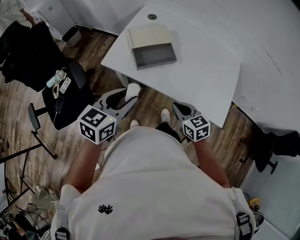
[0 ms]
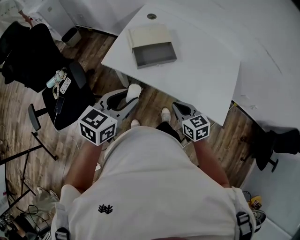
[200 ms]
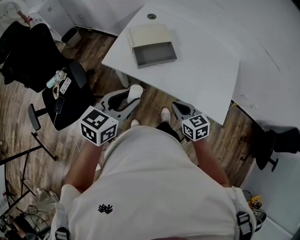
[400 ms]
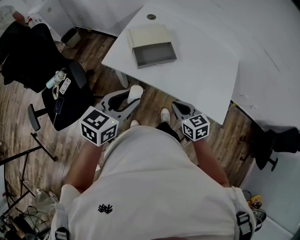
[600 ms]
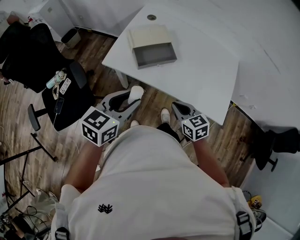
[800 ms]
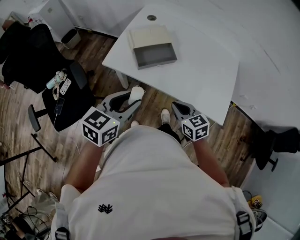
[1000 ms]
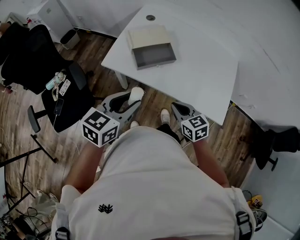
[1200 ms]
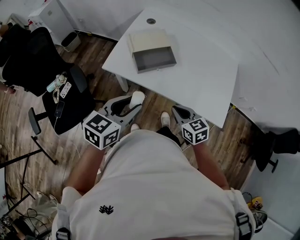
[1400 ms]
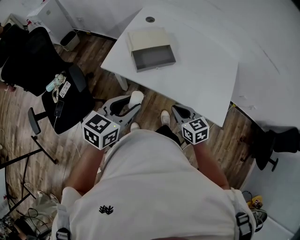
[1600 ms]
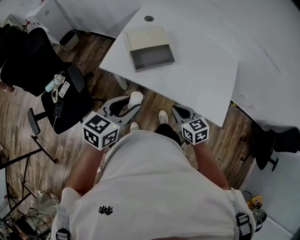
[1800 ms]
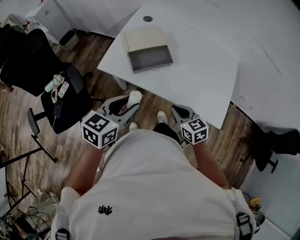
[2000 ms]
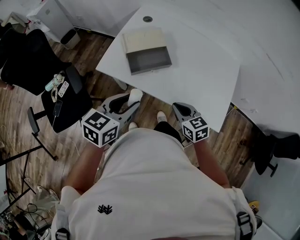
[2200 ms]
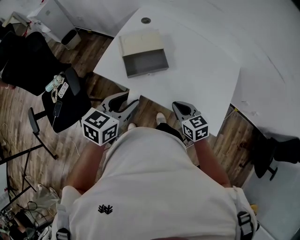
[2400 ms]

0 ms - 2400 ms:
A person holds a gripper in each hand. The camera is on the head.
0 ms - 1200 ms: The grippers make only small movements.
1200 ms - 2400 ms: The two grippers go about 10 cm forward and to the right.

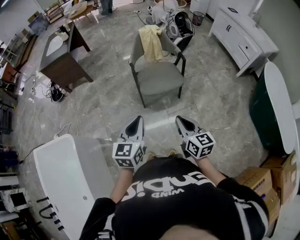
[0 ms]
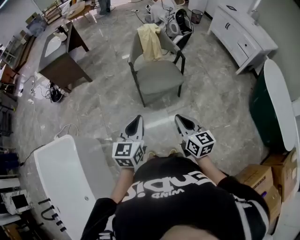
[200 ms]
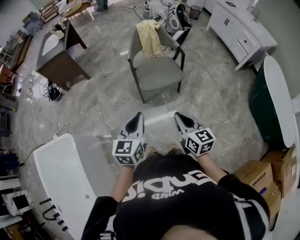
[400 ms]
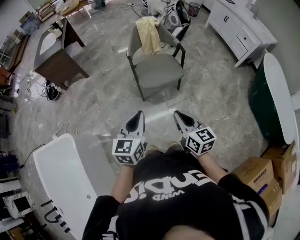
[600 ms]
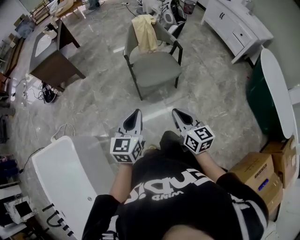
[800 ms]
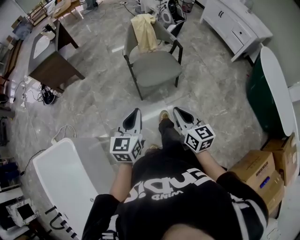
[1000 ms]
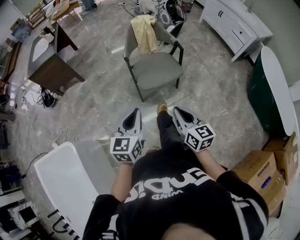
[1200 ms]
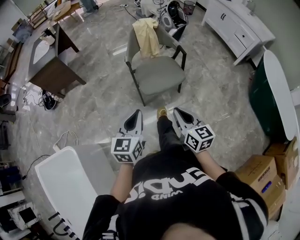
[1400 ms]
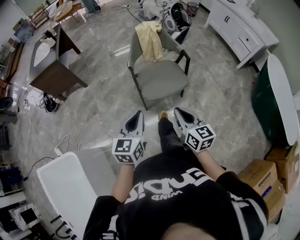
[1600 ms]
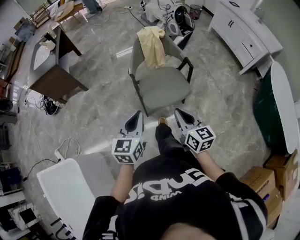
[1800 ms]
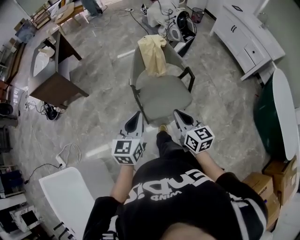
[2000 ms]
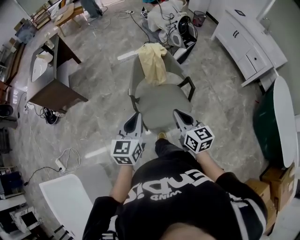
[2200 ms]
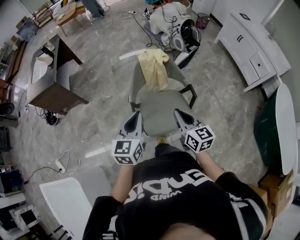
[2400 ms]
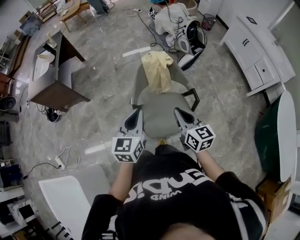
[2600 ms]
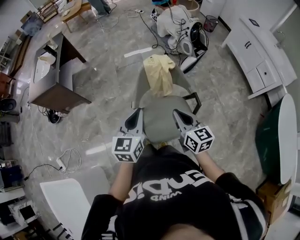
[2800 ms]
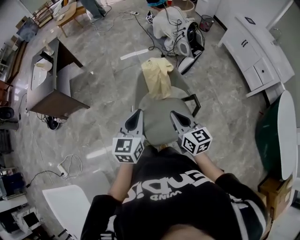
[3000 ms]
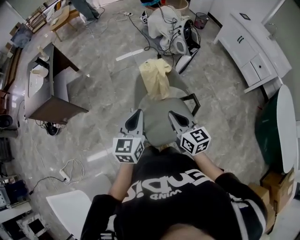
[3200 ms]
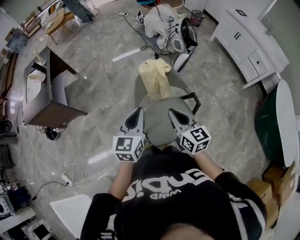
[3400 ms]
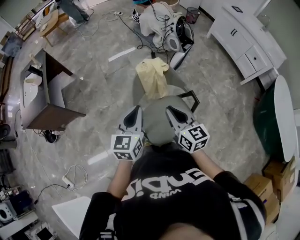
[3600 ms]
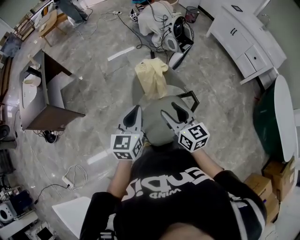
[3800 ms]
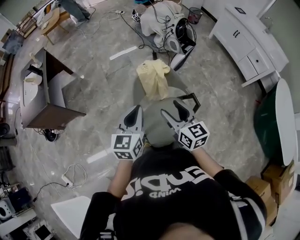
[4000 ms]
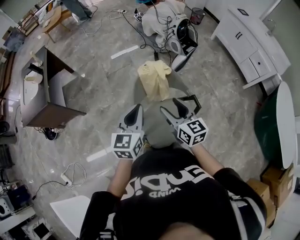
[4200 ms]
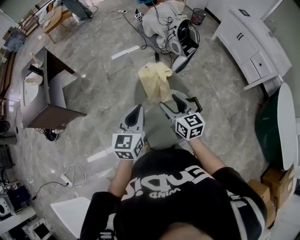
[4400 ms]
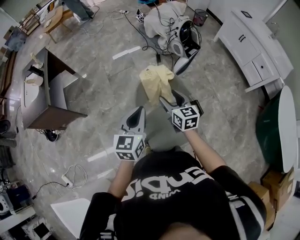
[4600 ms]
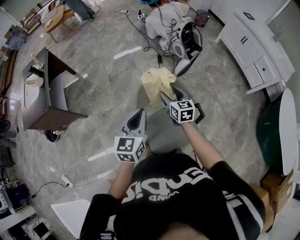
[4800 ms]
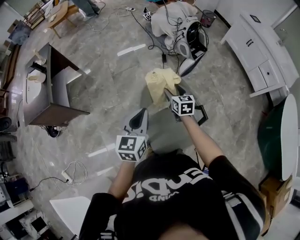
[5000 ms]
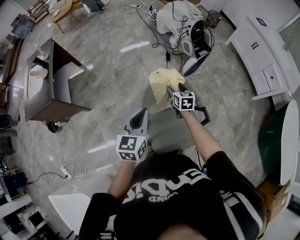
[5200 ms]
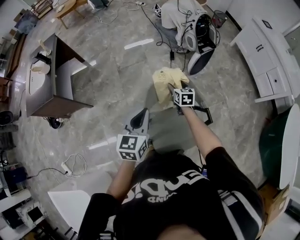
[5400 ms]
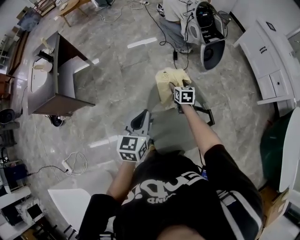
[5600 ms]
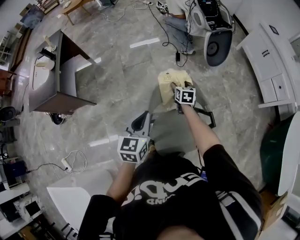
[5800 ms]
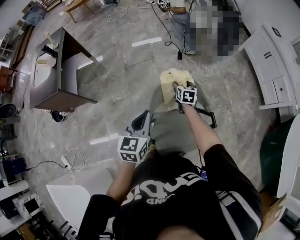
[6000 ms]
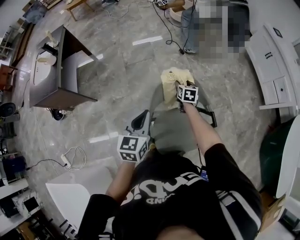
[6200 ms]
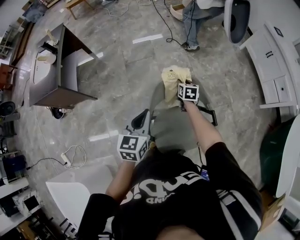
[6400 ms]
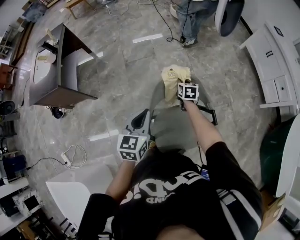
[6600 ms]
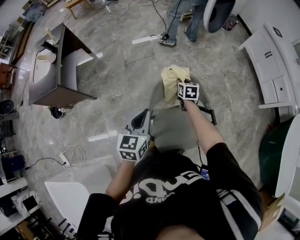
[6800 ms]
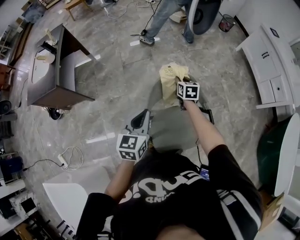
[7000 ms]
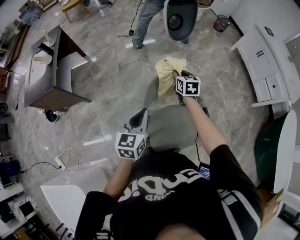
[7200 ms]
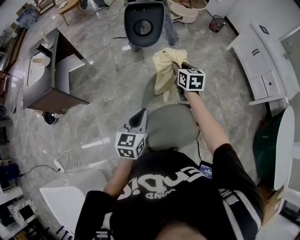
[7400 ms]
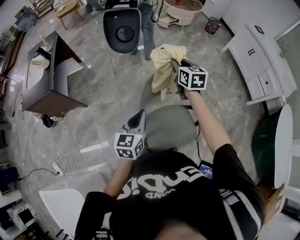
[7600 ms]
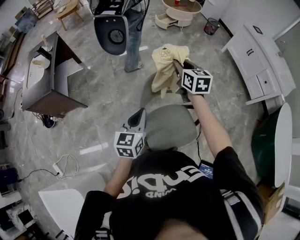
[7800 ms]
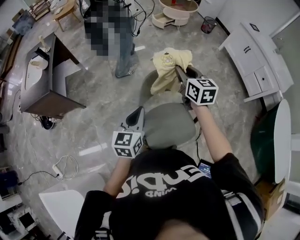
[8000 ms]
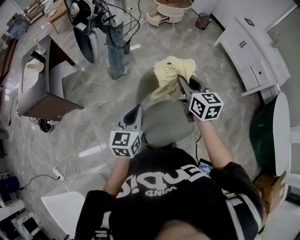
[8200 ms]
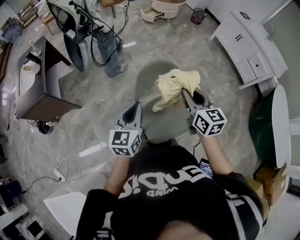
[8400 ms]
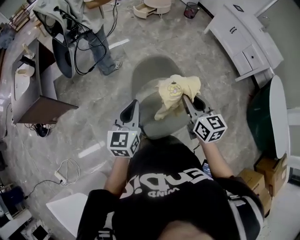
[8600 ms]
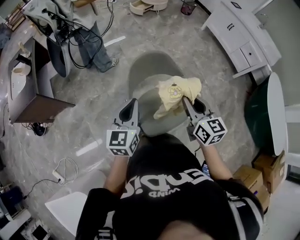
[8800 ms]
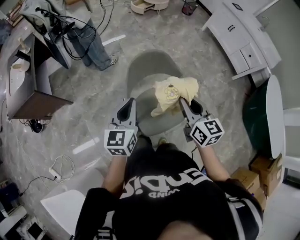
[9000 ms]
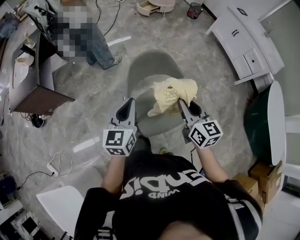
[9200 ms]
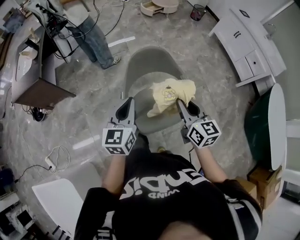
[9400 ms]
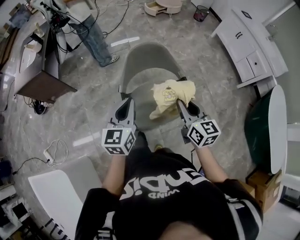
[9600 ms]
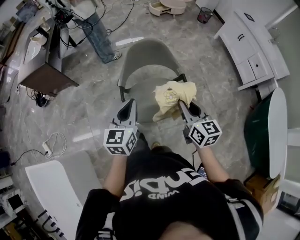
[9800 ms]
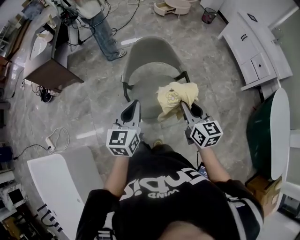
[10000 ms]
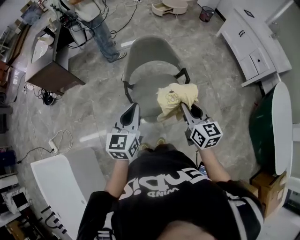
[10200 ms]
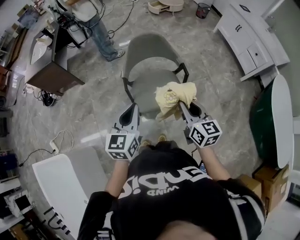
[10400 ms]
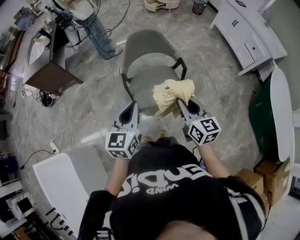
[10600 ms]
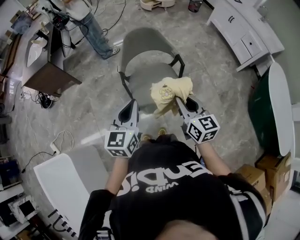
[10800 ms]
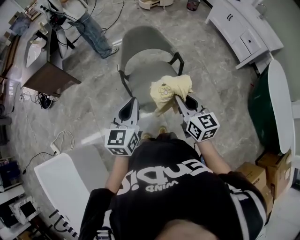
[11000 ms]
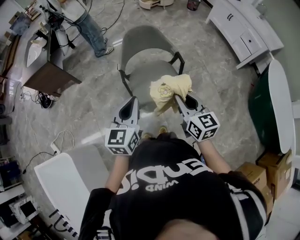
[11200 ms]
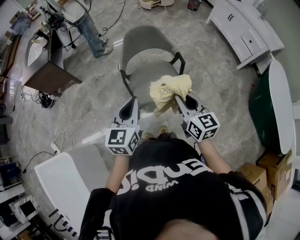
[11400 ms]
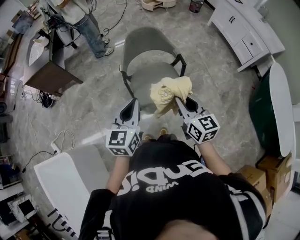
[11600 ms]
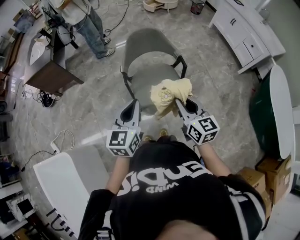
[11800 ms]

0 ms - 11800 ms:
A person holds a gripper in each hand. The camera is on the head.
0 ms - 1400 ms: The grippers both shift forward and to the left by roughly 10 cm.
1400 ms - 3000 ms: Both grippers are carried forward, approximately 40 cm.
3000 ms - 4400 ms: The two grippers go about 10 cm forward. The right gripper opens.
4400 ms - 6000 ms: The right gripper is displaced forward and downward by roughly 30 cm, and swivels about 30 degrees; the left gripper heads downward, to the left and forward, covering approximately 10 cm.
6000 ms - 7400 ms: The right gripper moves upward, about 20 cm, and closes its fingers.
7400 ms - 8800 ms: The left gripper travels backward by approximately 5 cm. Meanwhile the right gripper heads backward, covering about 30 cm.
8800 ms - 10400 ms: Both grippers travel together backward, some 25 cm.
10400 ms - 11800 ms: The right gripper shifts approximately 5 cm backward.

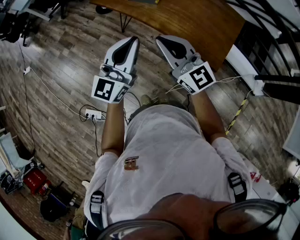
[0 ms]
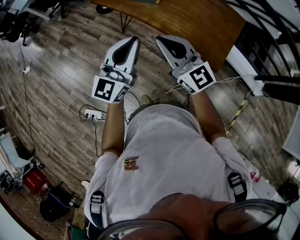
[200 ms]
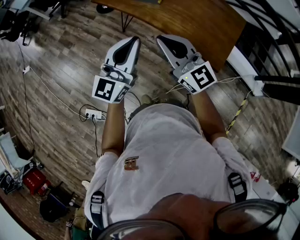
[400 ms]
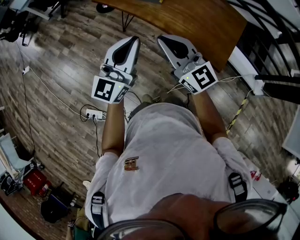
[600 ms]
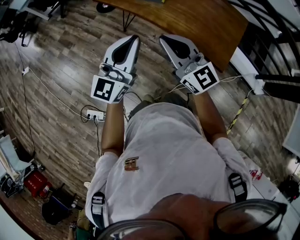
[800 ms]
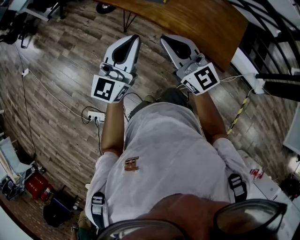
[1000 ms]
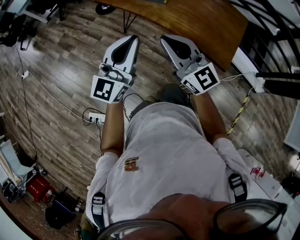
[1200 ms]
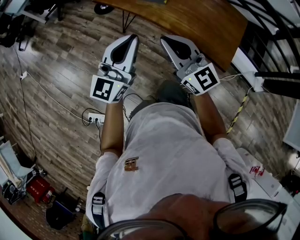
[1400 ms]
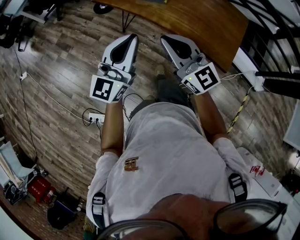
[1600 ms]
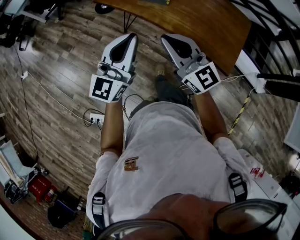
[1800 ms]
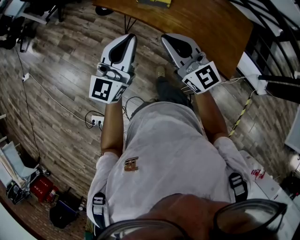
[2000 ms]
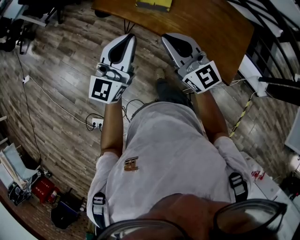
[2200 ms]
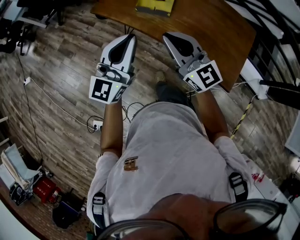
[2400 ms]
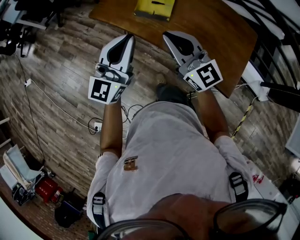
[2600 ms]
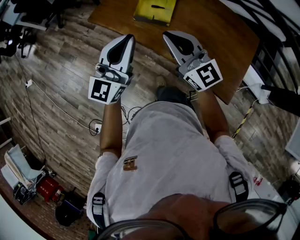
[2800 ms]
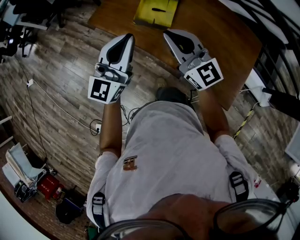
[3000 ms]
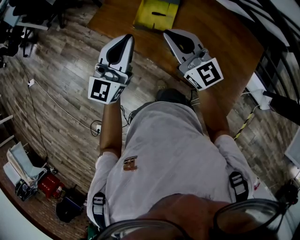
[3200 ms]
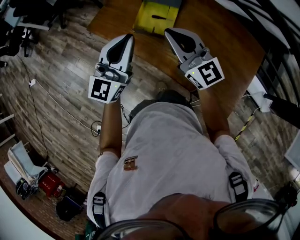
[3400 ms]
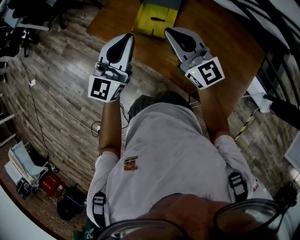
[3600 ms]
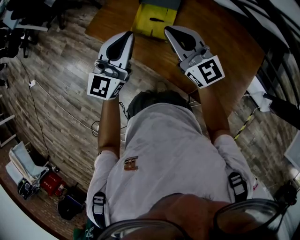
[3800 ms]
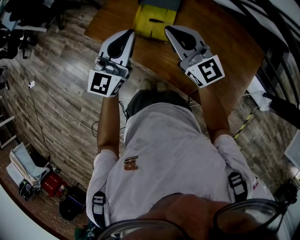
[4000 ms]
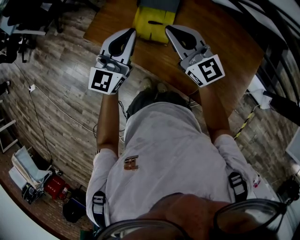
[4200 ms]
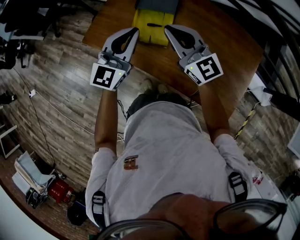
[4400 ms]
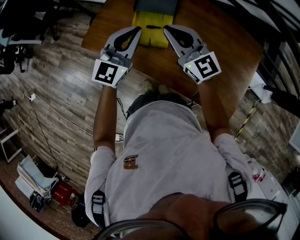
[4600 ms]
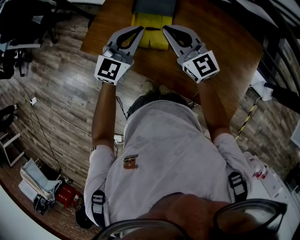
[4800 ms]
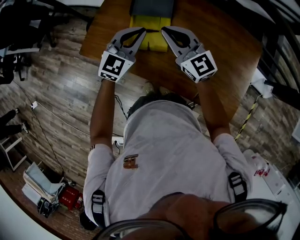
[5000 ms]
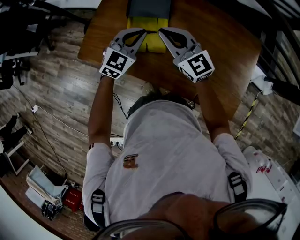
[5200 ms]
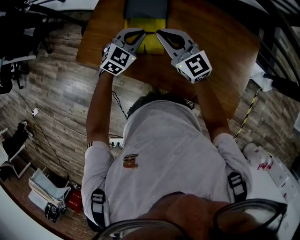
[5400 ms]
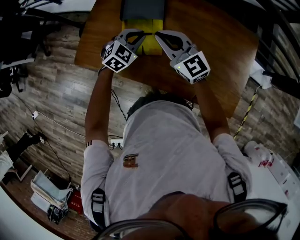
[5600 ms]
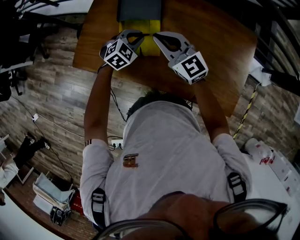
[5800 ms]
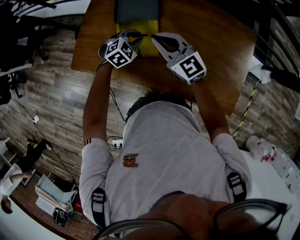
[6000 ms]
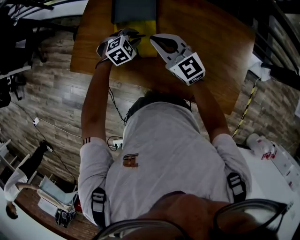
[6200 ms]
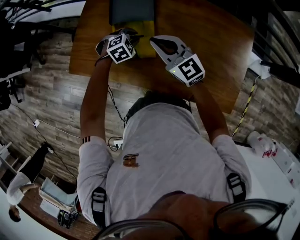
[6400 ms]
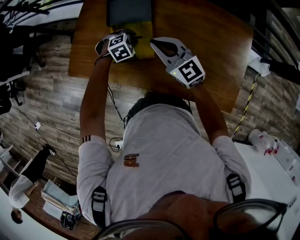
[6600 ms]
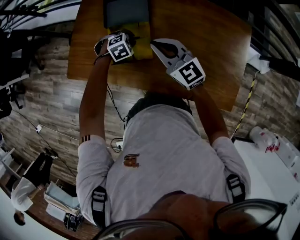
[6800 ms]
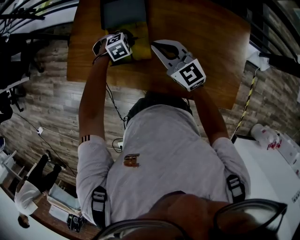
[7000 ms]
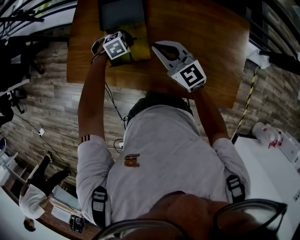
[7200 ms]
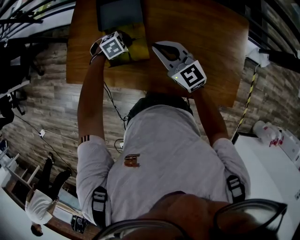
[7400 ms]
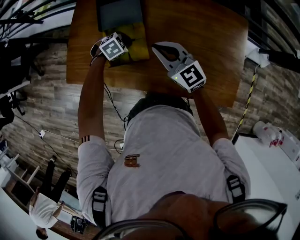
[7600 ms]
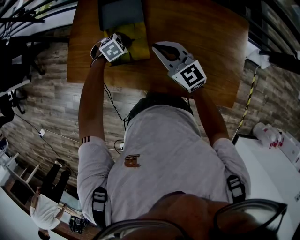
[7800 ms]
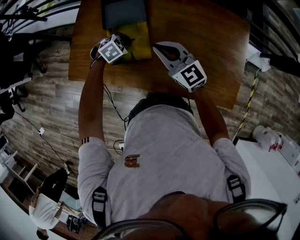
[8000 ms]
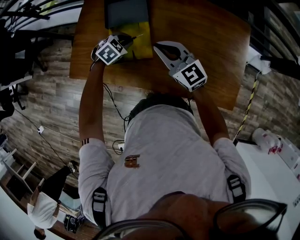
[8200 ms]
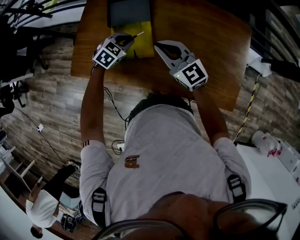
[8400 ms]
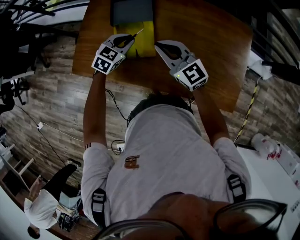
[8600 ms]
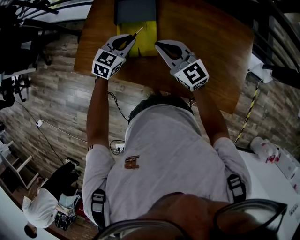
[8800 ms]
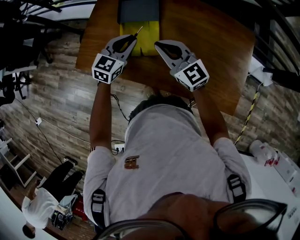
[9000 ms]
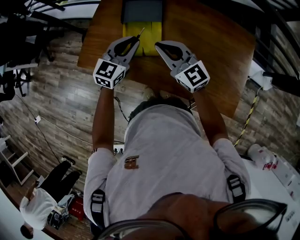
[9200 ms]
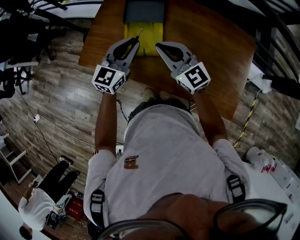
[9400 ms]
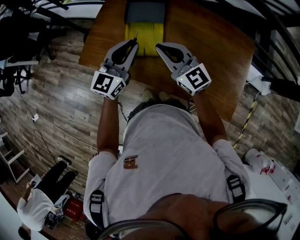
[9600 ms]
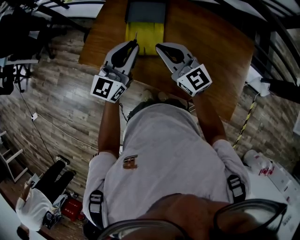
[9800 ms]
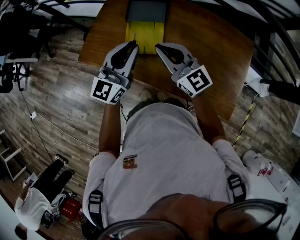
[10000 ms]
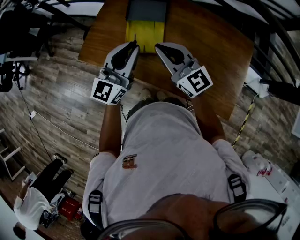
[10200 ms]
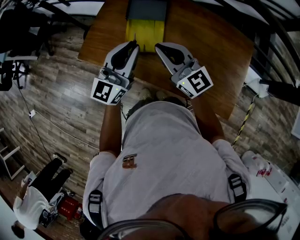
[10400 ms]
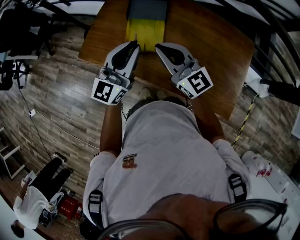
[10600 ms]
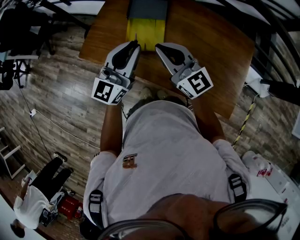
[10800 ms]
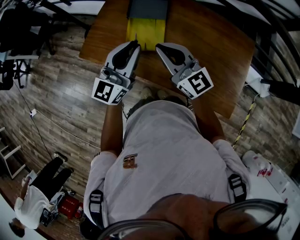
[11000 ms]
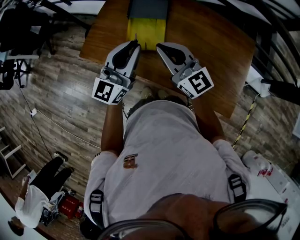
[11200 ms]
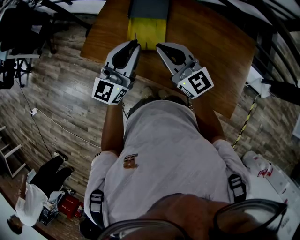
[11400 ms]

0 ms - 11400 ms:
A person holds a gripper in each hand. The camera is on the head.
0 ms - 1400 ms: The two grippers go roughly 10 cm to the left.
1400 ms - 2800 ms: Both grippers travel together forward, approximately 30 cm.
2800 ms - 4200 ms: The two grippers go roughly 20 cm forward.
4200 ms - 5600 ms: The right gripper shifts roughly 15 cm forward and downward. The left gripper is displaced downward and forward by approximately 25 cm, and tips its fingers downward by some 50 degrees.
5600 ms - 7200 ms: The left gripper is displaced downward by some 10 cm, and angles its fingers downward, by some 30 degrees. Meanwhile the right gripper shifts roughly 5 cm to the right.
7200 ms - 8600 ms: The left gripper moves upward, roughly 10 cm, and swivels approximately 40 degrees.
8600 ms - 10000 ms: The right gripper goes about 10 cm upward and backward; the left gripper travels upward and backward by some 25 cm, and angles its fingers upward, by approximately 50 degrees.
10000 ms - 11400 ms: There are only small adjustments of the grippers.
